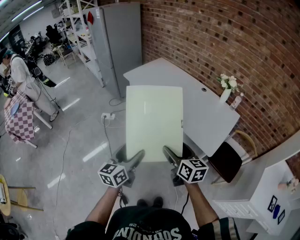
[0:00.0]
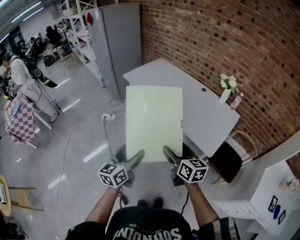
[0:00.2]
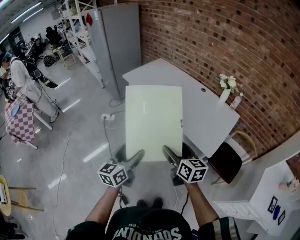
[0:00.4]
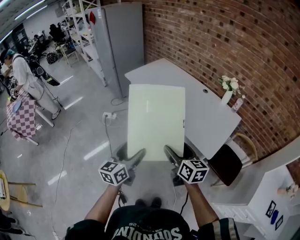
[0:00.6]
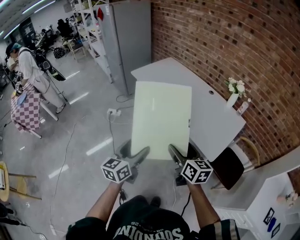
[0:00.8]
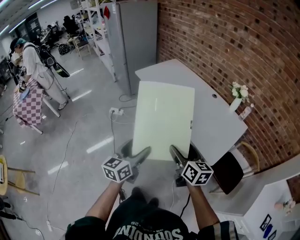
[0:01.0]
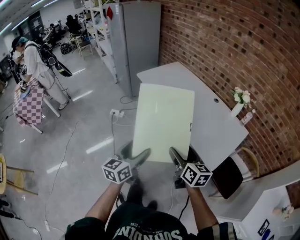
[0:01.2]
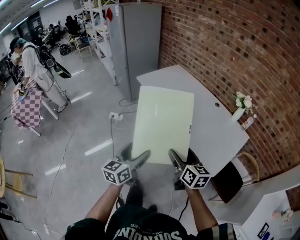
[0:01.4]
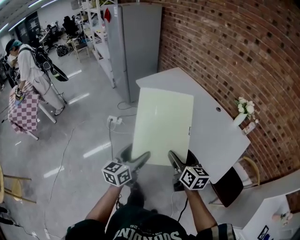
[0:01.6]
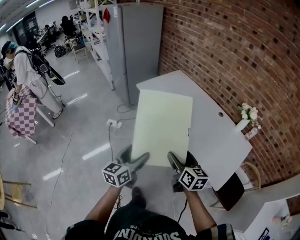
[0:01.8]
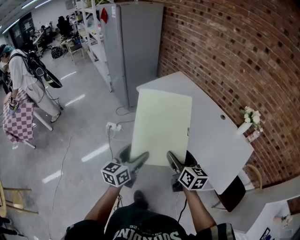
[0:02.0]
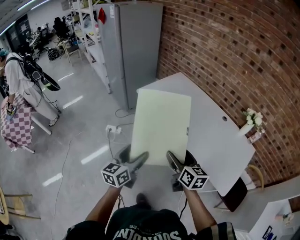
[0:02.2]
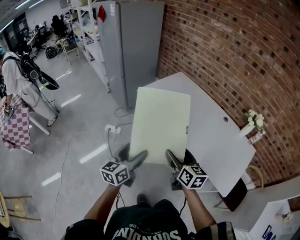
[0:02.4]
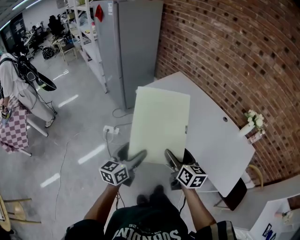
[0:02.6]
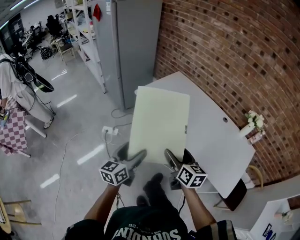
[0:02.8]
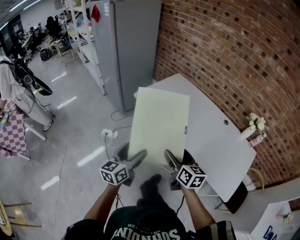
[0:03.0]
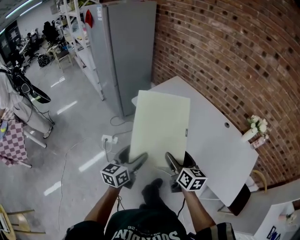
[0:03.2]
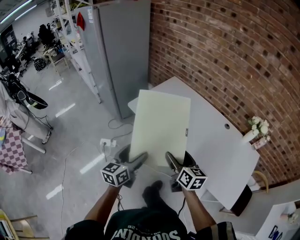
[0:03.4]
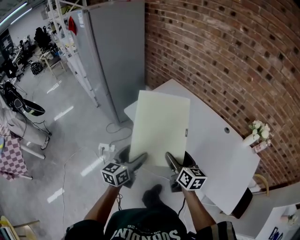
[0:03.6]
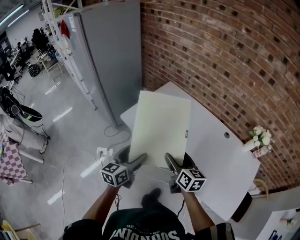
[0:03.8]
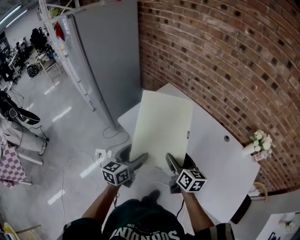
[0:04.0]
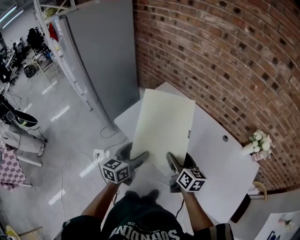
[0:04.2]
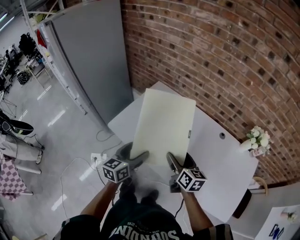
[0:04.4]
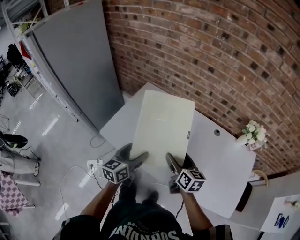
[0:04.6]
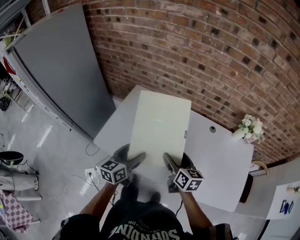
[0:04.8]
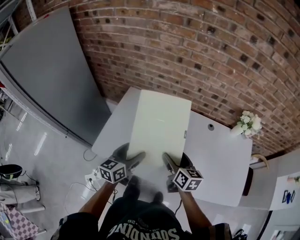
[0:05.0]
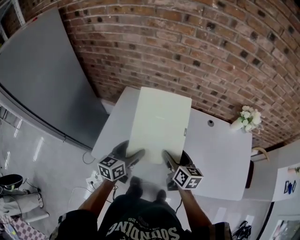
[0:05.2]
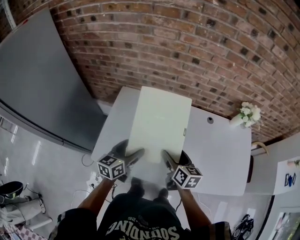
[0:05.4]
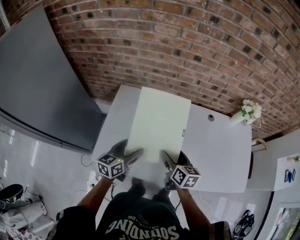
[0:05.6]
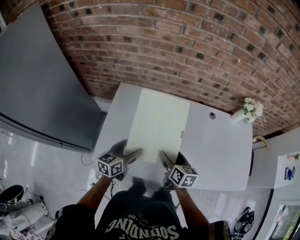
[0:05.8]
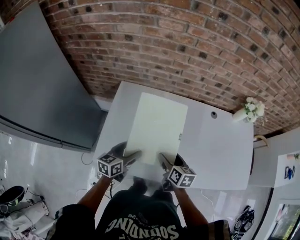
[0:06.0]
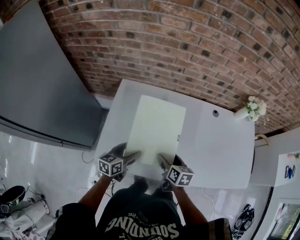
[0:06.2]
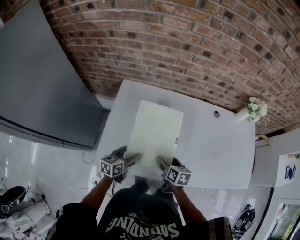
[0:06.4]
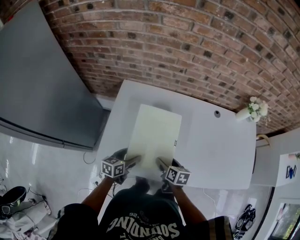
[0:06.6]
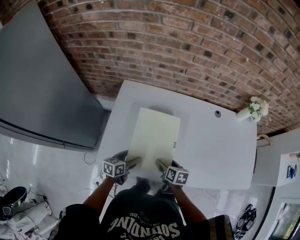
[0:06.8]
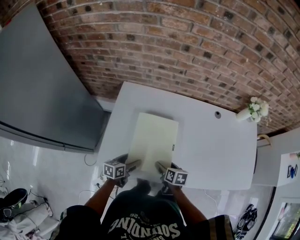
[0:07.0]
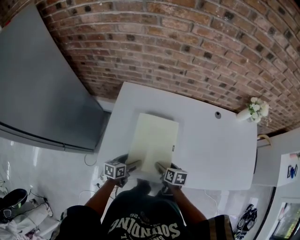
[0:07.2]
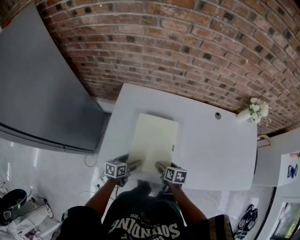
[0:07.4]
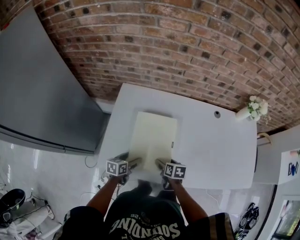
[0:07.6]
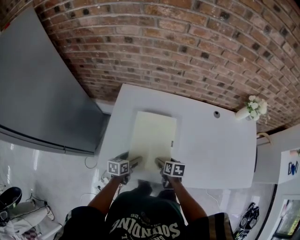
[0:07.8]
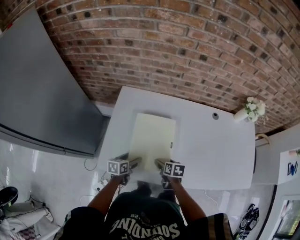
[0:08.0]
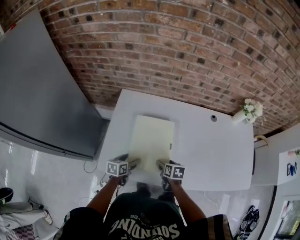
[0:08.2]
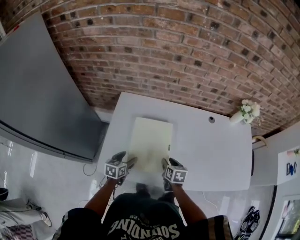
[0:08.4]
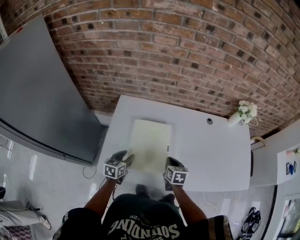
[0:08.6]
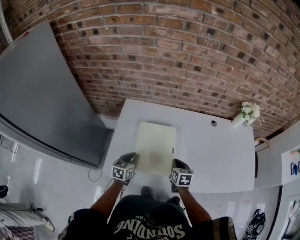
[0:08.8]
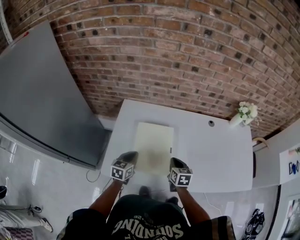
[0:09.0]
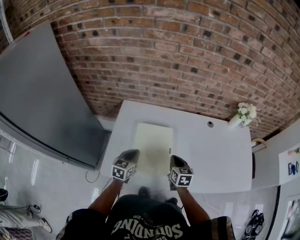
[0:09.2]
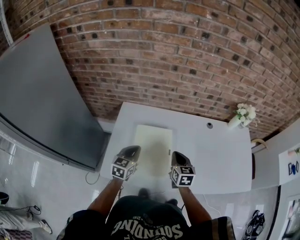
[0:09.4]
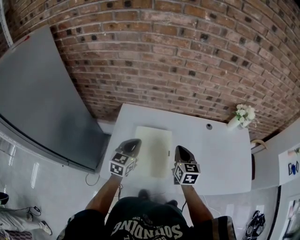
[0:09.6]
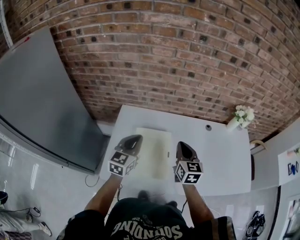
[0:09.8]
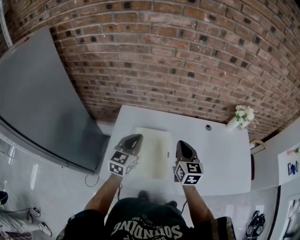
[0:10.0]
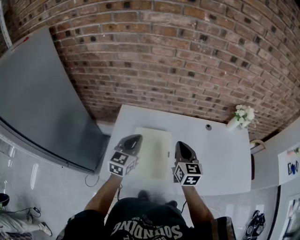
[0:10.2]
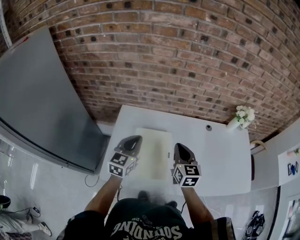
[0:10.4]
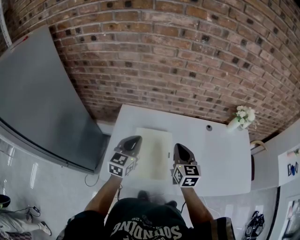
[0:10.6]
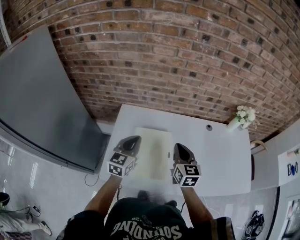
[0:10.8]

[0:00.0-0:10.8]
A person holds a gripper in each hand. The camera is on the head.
0.0 to 1.6 s: The grippers both shift forward by approximately 15 cm.
1.6 to 3.0 s: The two grippers go some 25 cm forward and to the left.
3.0 to 4.6 s: Both grippers move forward, approximately 35 cm. The right gripper changes its angle by some 20 degrees. Meanwhile the left gripper rotates about 20 degrees.
4.6 to 6.2 s: The left gripper travels downward, forward and to the left by about 20 cm, and rotates roughly 30 degrees. The right gripper moves downward and to the left, about 15 cm, and changes its angle by approximately 30 degrees.
6.2 to 7.8 s: The grippers both shift downward by approximately 10 cm.
7.8 to 9.2 s: Both grippers move upward, some 15 cm. The right gripper turns by about 30 degrees, and closes up. The left gripper turns by some 30 degrees, and closes up.
9.2 to 10.8 s: The left gripper travels upward and forward by approximately 15 cm. Meanwhile the right gripper heads upward, covering approximately 15 cm.

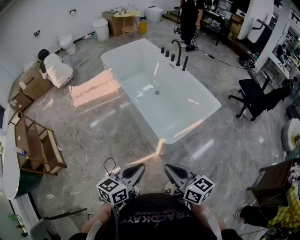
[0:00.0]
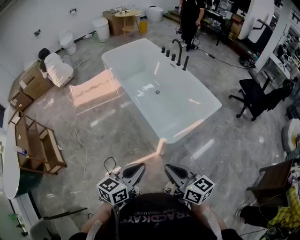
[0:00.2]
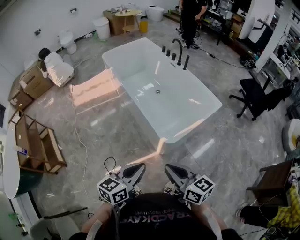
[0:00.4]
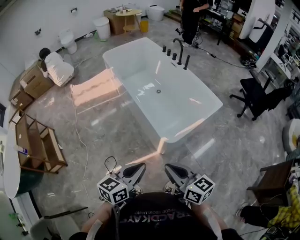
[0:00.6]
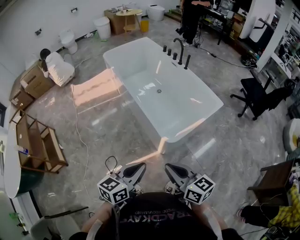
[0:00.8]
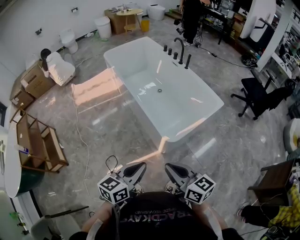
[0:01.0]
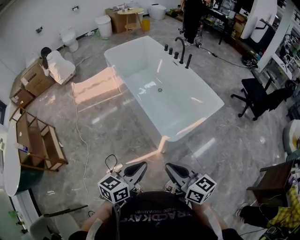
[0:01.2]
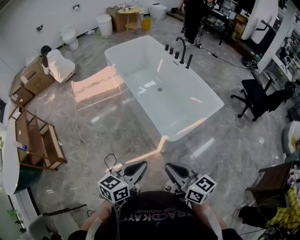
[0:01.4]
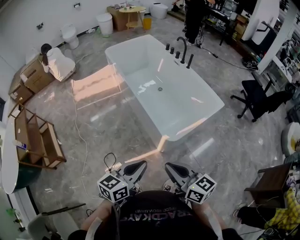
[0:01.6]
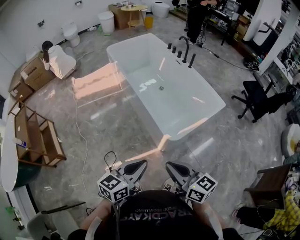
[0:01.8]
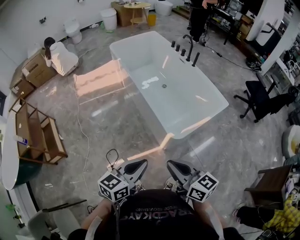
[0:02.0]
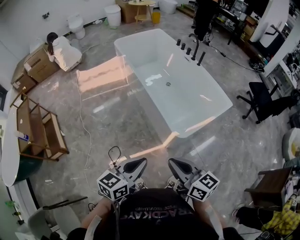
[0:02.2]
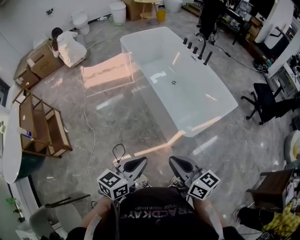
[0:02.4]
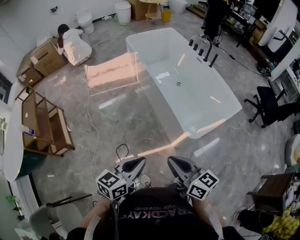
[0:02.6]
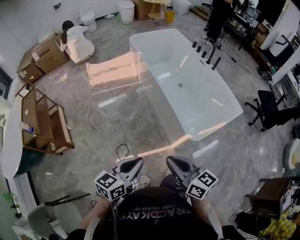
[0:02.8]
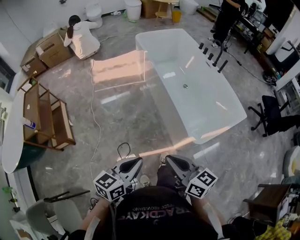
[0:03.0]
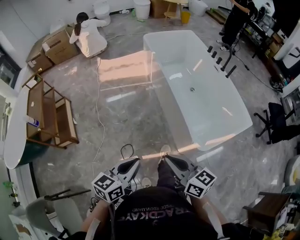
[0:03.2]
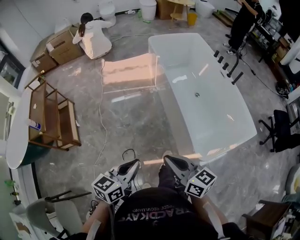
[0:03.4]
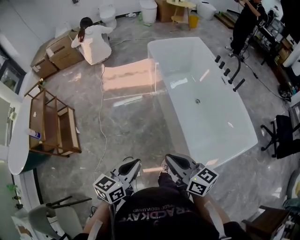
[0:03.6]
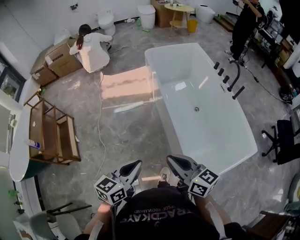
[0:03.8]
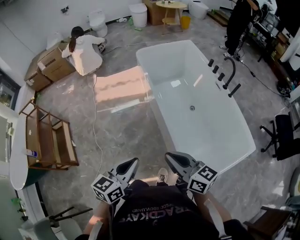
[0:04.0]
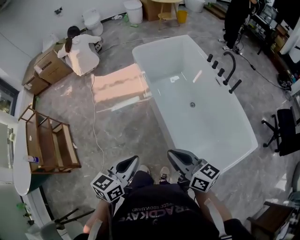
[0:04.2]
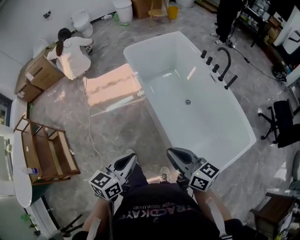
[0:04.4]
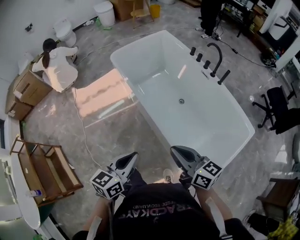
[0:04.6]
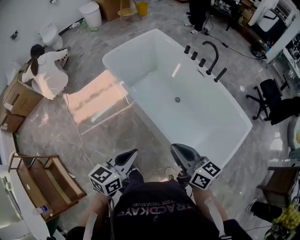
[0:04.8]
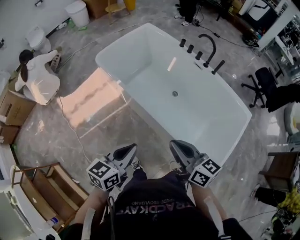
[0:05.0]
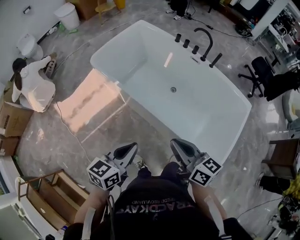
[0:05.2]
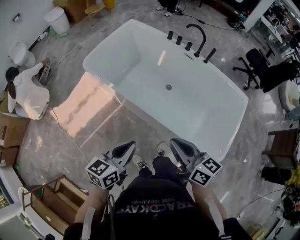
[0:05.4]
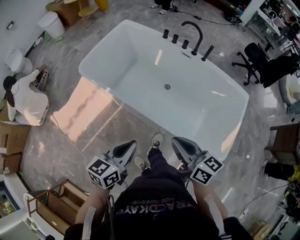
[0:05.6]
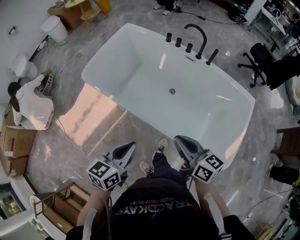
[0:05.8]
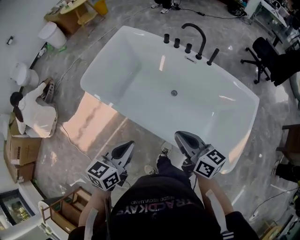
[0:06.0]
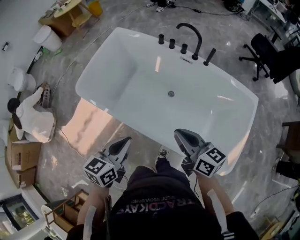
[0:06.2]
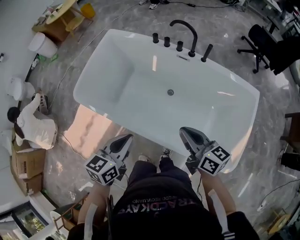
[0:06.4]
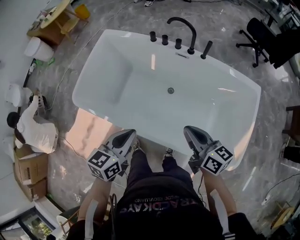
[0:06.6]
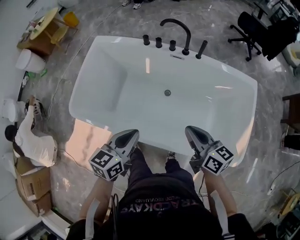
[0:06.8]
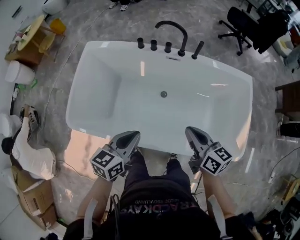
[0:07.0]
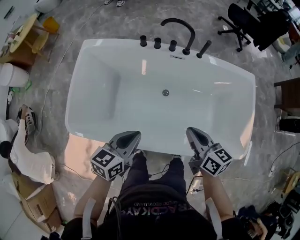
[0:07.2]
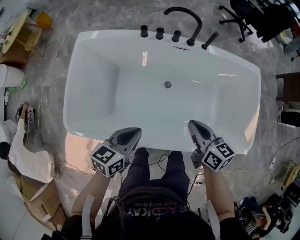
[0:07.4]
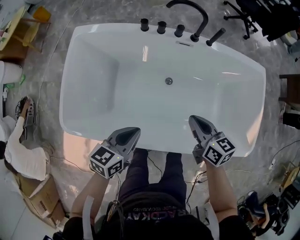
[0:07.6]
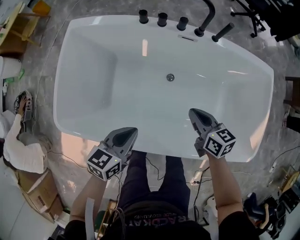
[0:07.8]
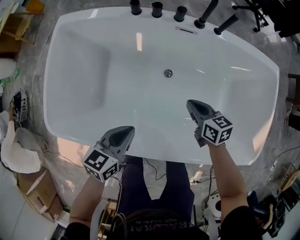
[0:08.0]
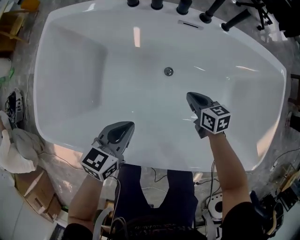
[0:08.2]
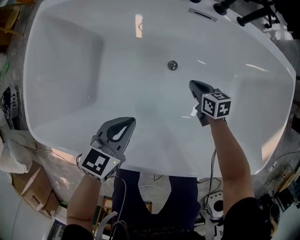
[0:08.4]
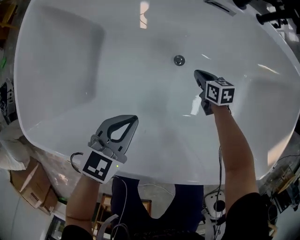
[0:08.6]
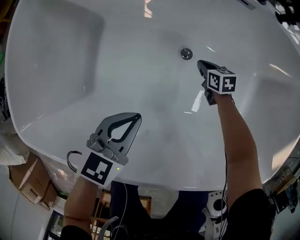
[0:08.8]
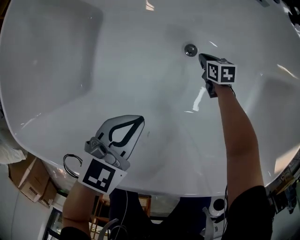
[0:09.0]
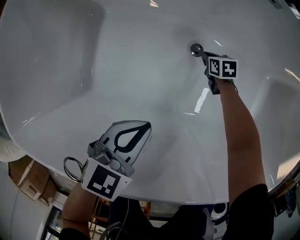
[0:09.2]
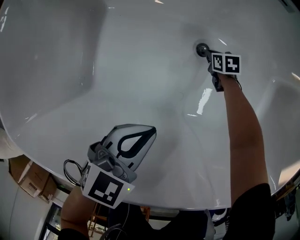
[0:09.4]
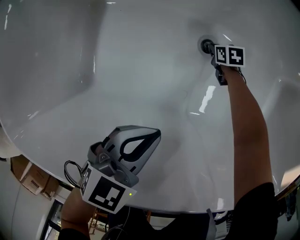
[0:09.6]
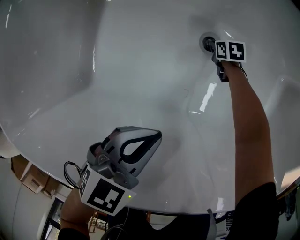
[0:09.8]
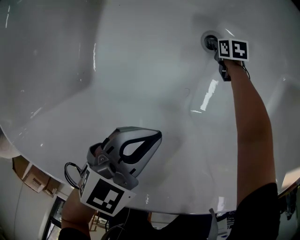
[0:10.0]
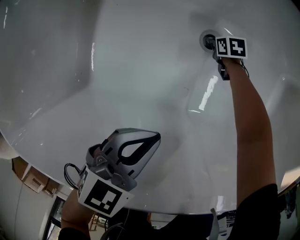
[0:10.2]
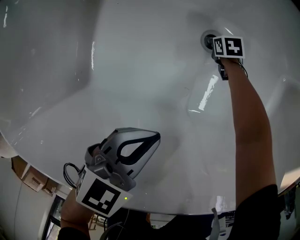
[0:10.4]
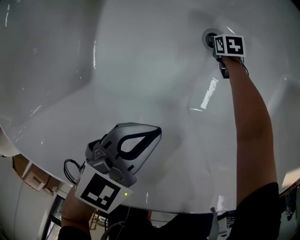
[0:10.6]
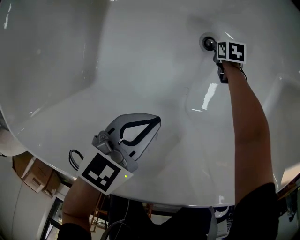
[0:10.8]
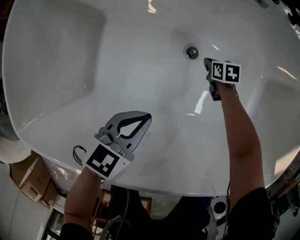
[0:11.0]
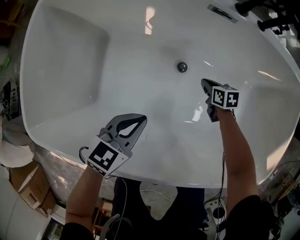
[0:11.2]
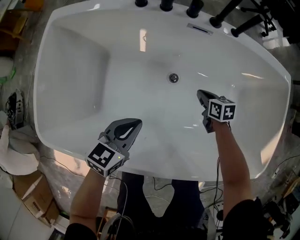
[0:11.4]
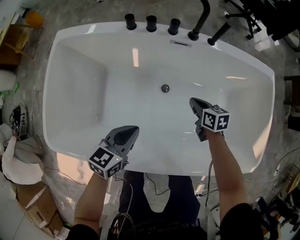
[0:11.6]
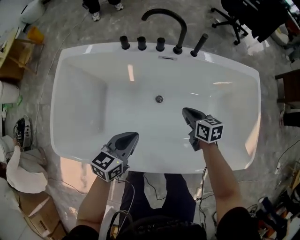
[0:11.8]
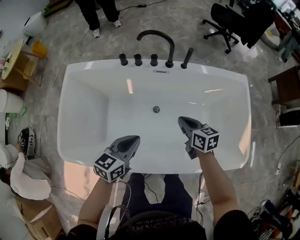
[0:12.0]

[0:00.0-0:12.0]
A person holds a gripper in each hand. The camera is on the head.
0.0 to 1.6 s: The grippers stay close to where they were, moving slightly.
1.6 to 3.0 s: The grippers both shift to the left by about 15 cm.
3.0 to 4.4 s: The two grippers go approximately 35 cm forward.
4.4 to 6.0 s: The right gripper changes place by some 25 cm, and rotates some 40 degrees. Meanwhile the left gripper changes place by about 30 cm, and turns by some 30 degrees.
6.0 to 7.6 s: The right gripper moves about 25 cm, and changes its angle by some 30 degrees. Meanwhile the left gripper changes place by approximately 30 cm, and swivels some 30 degrees.
7.6 to 9.0 s: The right gripper goes some 50 cm downward, and changes its angle by about 30 degrees. Meanwhile the left gripper goes roughly 25 cm downward, and changes its angle by about 30 degrees.
9.0 to 10.4 s: The right gripper travels downward by roughly 10 cm.
10.4 to 12.0 s: The left gripper is displaced upward by about 30 cm, and changes its angle by roughly 20 degrees, while the right gripper goes some 60 cm upward, and points its fingers roughly 40 degrees further upward.

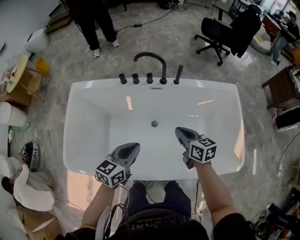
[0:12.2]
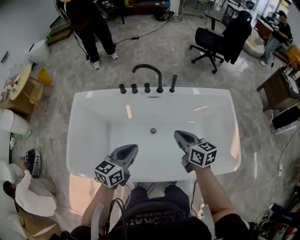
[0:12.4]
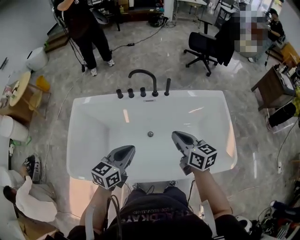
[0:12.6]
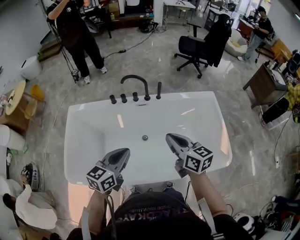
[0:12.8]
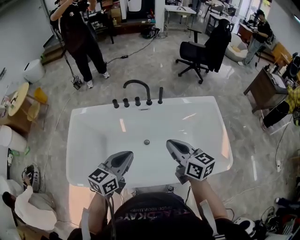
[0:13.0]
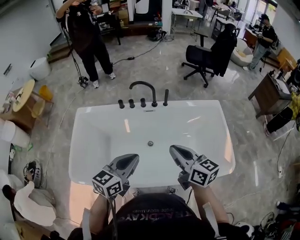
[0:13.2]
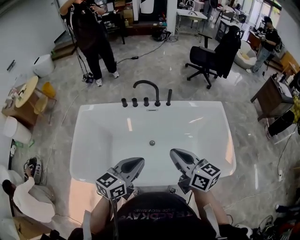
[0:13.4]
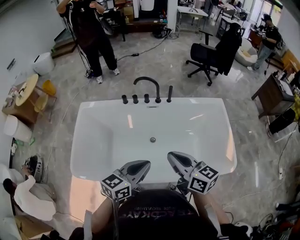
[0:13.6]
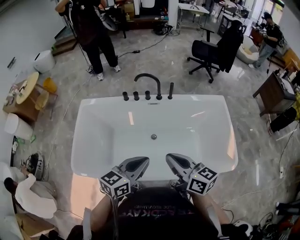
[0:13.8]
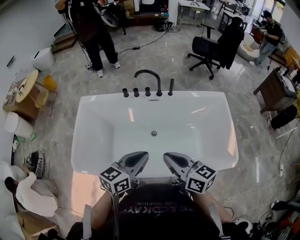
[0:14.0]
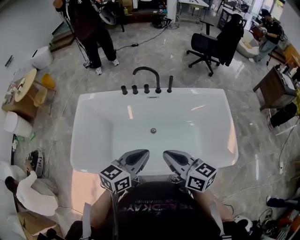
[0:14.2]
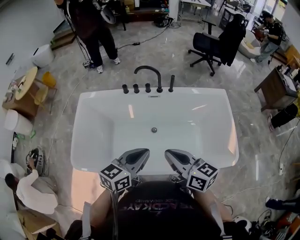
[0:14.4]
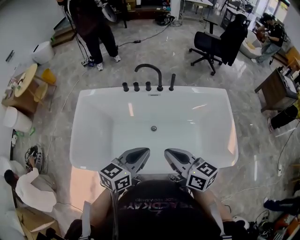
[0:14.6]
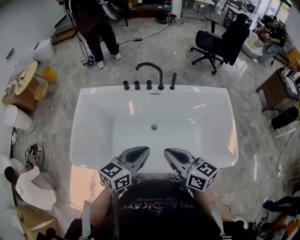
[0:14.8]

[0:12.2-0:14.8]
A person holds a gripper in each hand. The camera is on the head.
12.2 to 13.4 s: The right gripper shifts about 25 cm upward and backward, and swivels some 20 degrees, while the left gripper heads upward and backward, covering about 15 cm.
13.4 to 14.8 s: The right gripper ends up roughly 5 cm from where it was.
